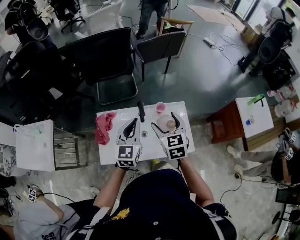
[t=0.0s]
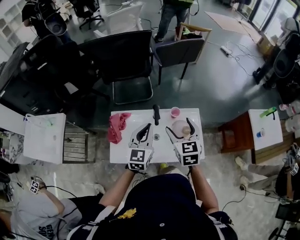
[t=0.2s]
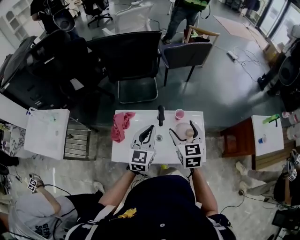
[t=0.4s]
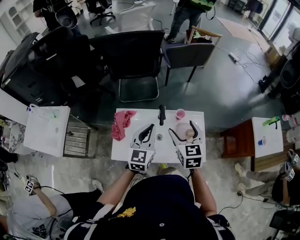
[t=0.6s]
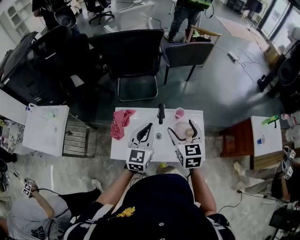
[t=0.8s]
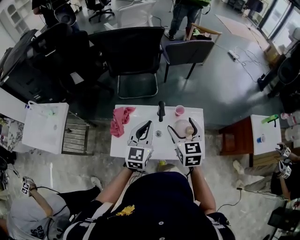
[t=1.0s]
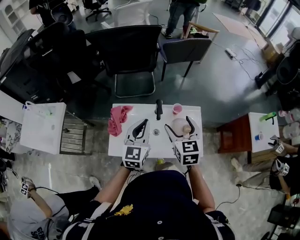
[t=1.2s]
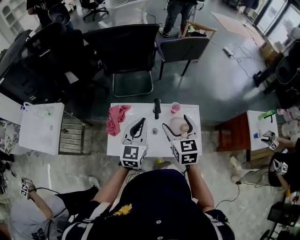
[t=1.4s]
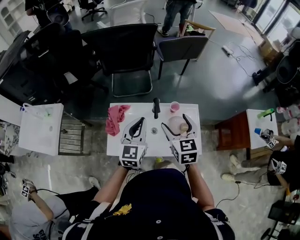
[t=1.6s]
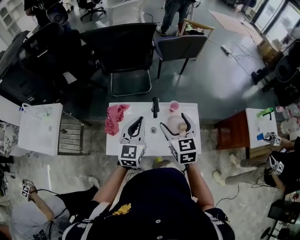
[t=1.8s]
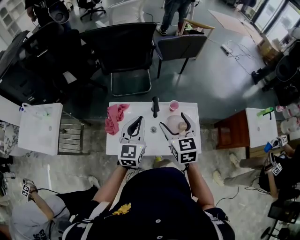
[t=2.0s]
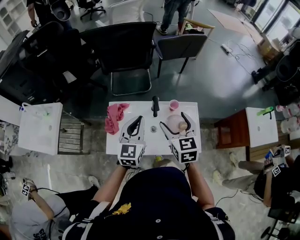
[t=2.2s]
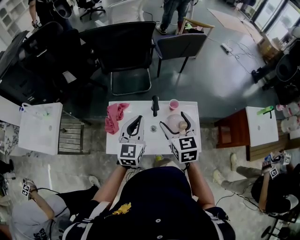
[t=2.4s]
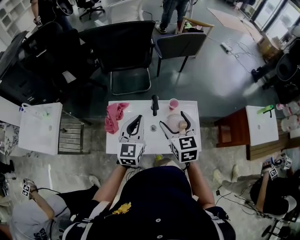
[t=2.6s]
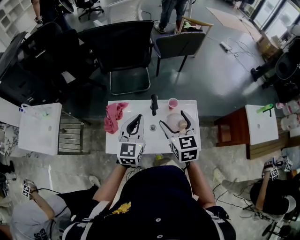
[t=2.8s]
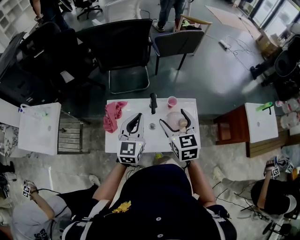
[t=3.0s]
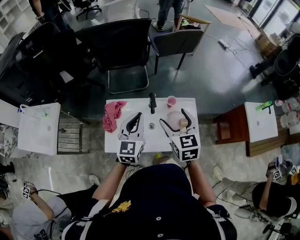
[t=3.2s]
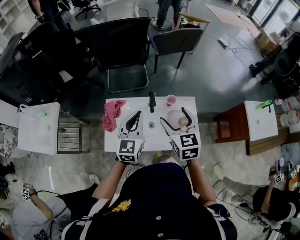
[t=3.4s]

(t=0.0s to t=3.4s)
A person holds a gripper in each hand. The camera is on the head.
t=0.0s - t=1.6s: The left gripper changes place by approximately 5 cm.
t=1.6s - t=3.4s: The grippers move only a little.

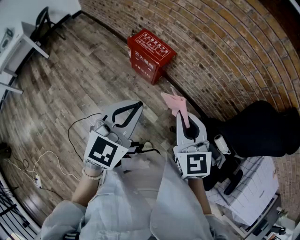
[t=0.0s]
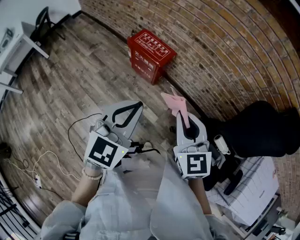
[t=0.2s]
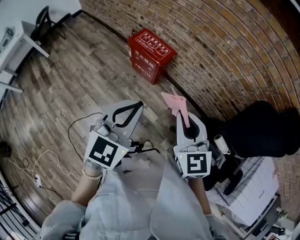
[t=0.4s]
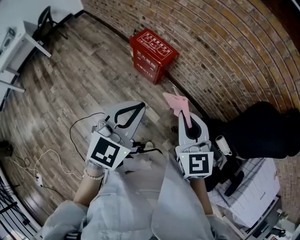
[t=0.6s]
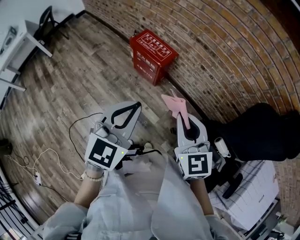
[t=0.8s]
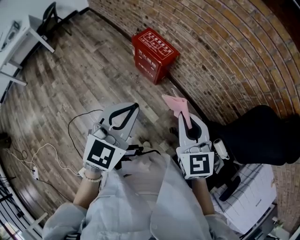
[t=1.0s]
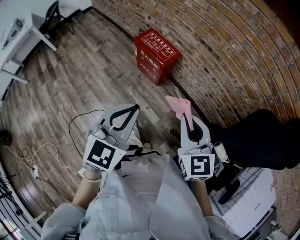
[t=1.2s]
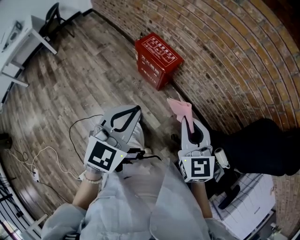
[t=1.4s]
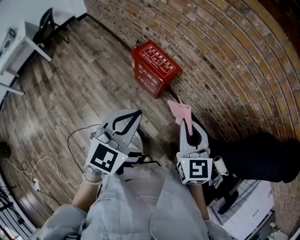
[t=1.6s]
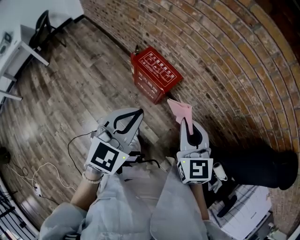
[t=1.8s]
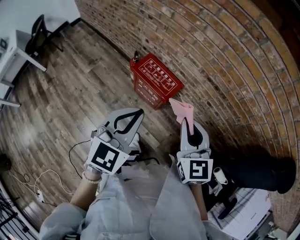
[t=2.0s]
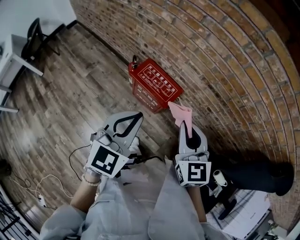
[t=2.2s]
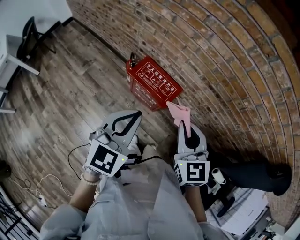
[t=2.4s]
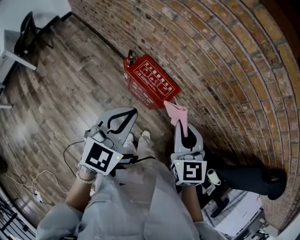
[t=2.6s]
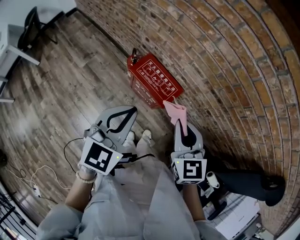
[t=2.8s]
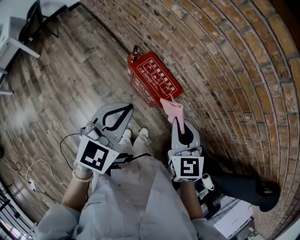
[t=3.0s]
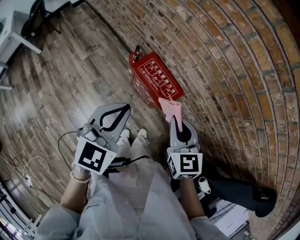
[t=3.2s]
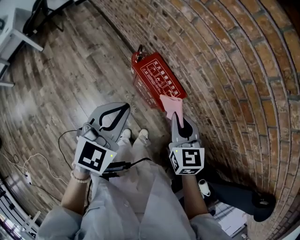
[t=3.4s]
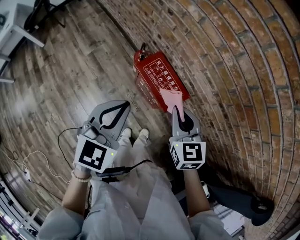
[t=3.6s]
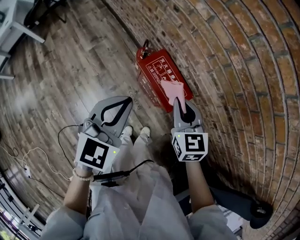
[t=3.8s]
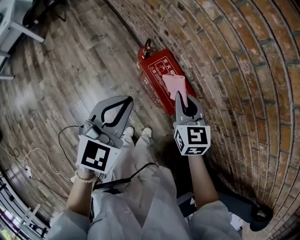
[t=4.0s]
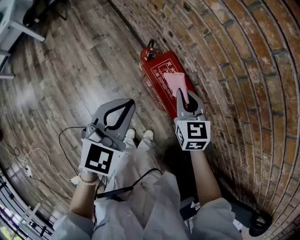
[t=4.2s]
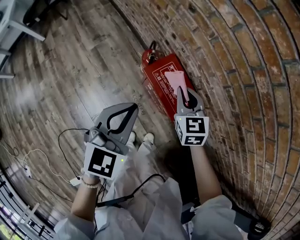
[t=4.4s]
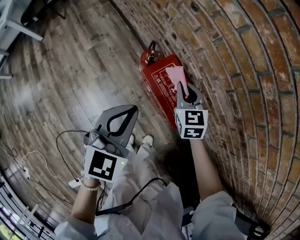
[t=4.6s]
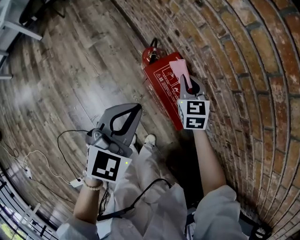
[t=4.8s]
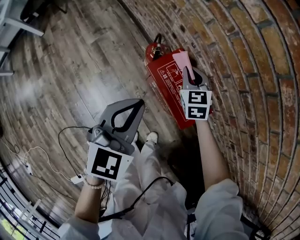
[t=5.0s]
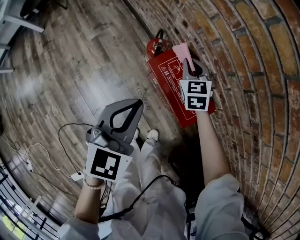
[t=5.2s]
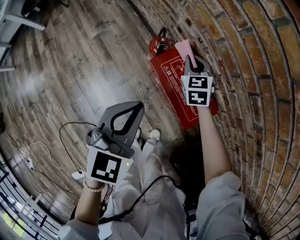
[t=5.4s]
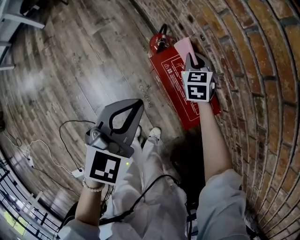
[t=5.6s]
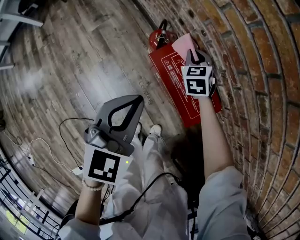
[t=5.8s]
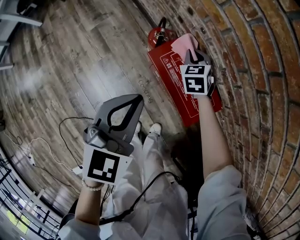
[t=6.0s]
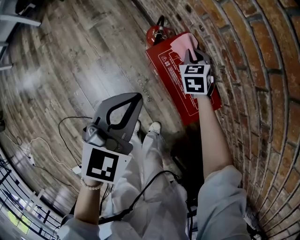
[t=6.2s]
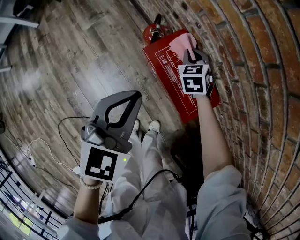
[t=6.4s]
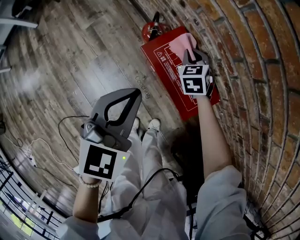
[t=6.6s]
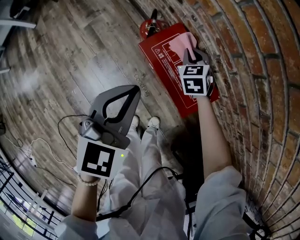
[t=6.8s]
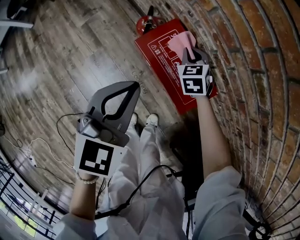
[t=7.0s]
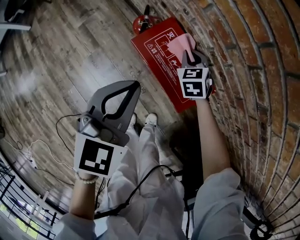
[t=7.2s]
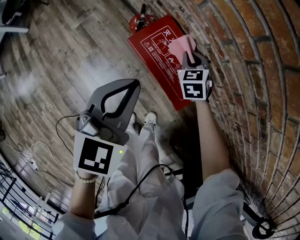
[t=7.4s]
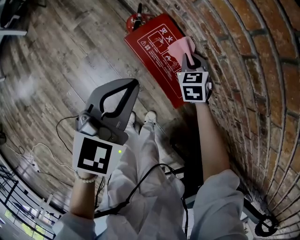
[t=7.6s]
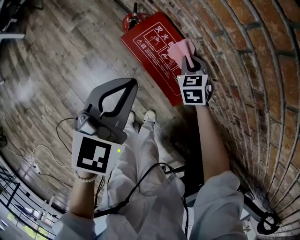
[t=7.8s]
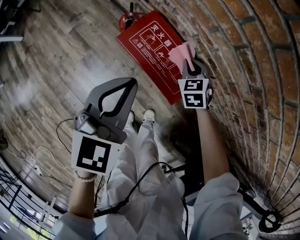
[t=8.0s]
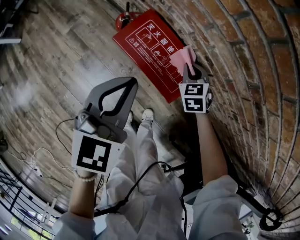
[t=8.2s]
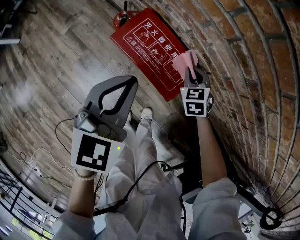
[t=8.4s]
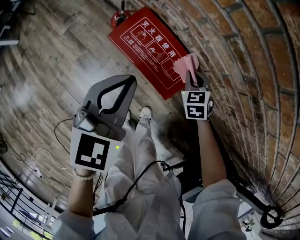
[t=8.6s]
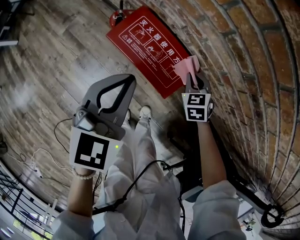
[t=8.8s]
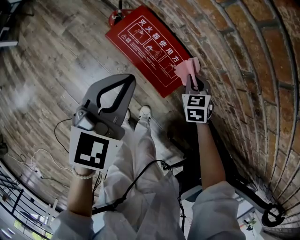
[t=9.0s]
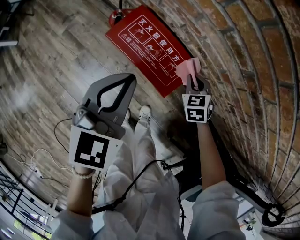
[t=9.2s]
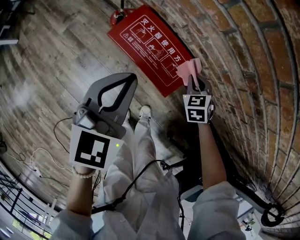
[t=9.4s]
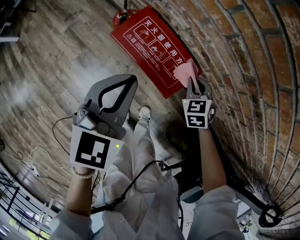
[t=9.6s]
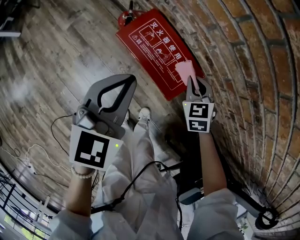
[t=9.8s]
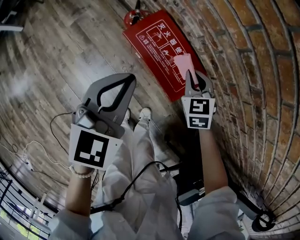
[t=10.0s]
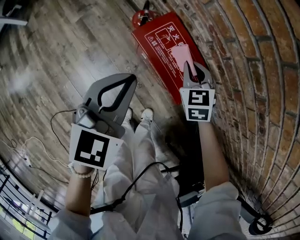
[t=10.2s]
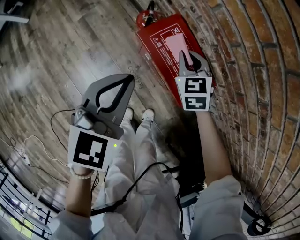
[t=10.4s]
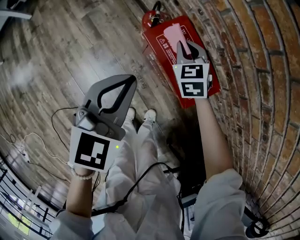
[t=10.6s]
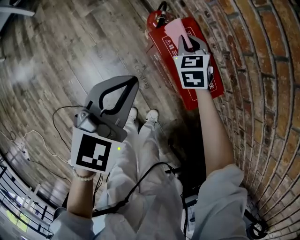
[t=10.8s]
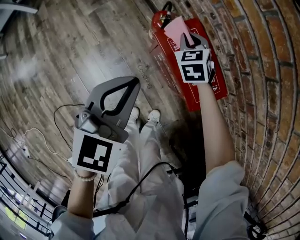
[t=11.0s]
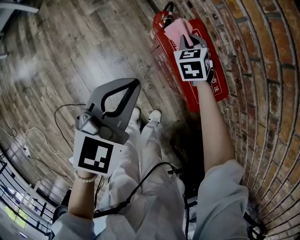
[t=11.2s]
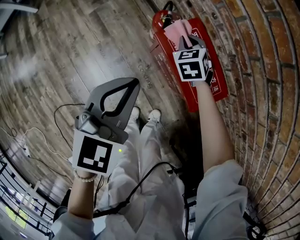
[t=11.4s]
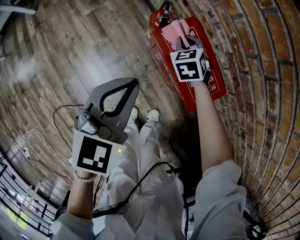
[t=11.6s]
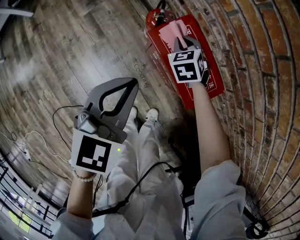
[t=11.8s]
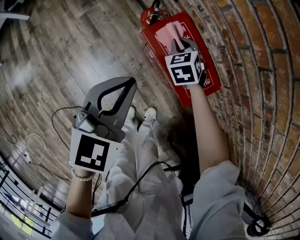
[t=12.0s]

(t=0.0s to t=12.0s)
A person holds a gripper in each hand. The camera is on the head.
t=0.0s - t=1.6s: Both grippers travel together forward, about 10 cm.
t=1.6s - t=3.0s: The two grippers go some 25 cm forward and to the left.
t=3.0s - t=4.4s: The right gripper goes approximately 30 cm forward and downward, while the left gripper is displaced downward and forward by about 15 cm.
t=4.4s - t=6.0s: The right gripper heads downward and forward, covering about 25 cm. Meanwhile the left gripper shifts about 10 cm downward.
t=6.0s - t=7.6s: The right gripper heads to the right and backward, covering some 10 cm. Meanwhile the left gripper goes roughly 5 cm to the right.
t=7.6s - t=9.0s: The left gripper travels to the right by approximately 5 cm. Meanwhile the right gripper moves to the right and backward, approximately 15 cm.
t=9.0s - t=10.4s: The left gripper goes approximately 10 cm to the left; the right gripper goes approximately 20 cm to the left, and rotates approximately 20 degrees.
t=10.4s - t=12.0s: The right gripper shifts roughly 5 cm downward.

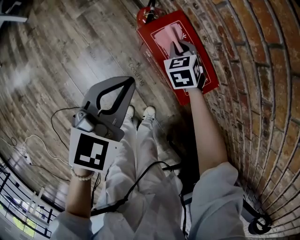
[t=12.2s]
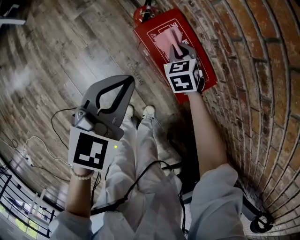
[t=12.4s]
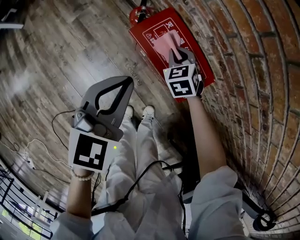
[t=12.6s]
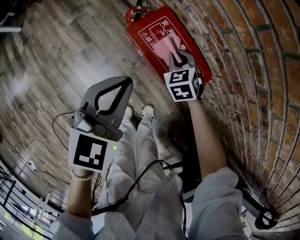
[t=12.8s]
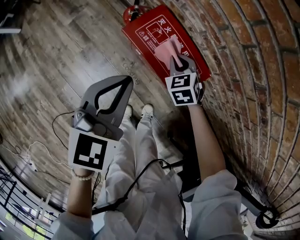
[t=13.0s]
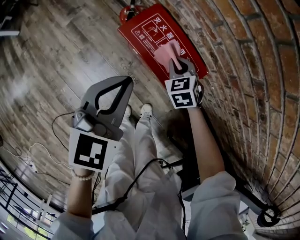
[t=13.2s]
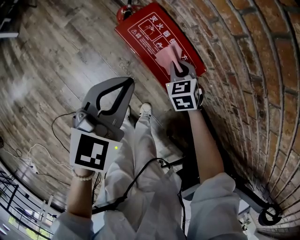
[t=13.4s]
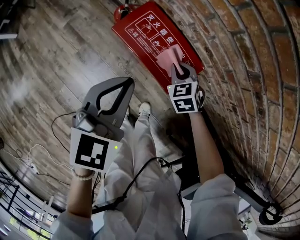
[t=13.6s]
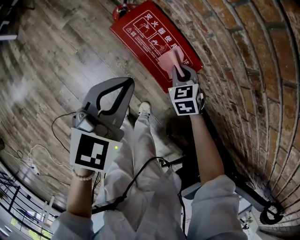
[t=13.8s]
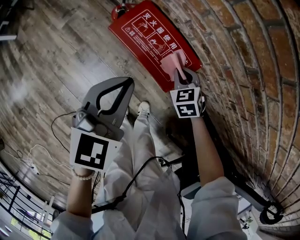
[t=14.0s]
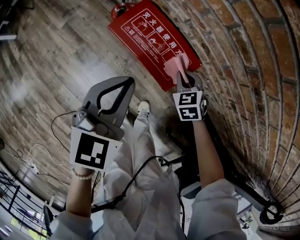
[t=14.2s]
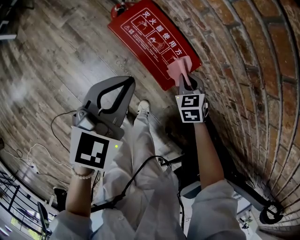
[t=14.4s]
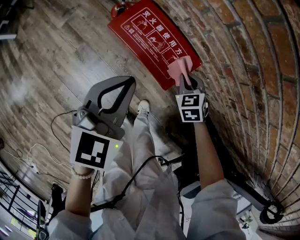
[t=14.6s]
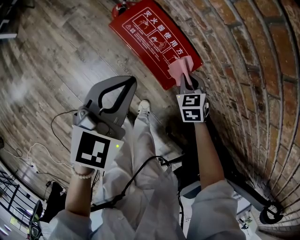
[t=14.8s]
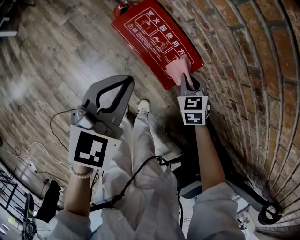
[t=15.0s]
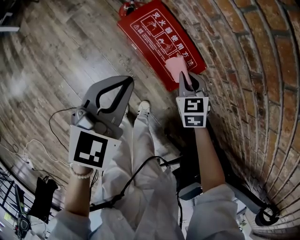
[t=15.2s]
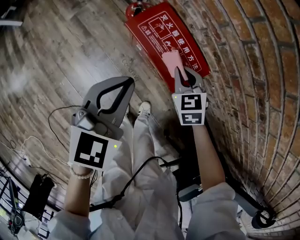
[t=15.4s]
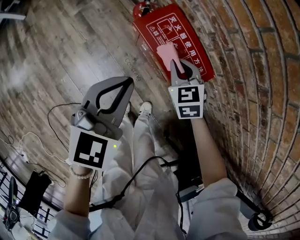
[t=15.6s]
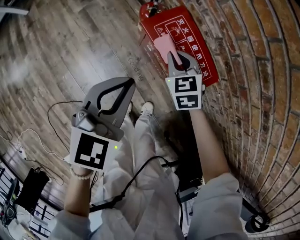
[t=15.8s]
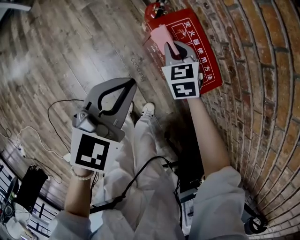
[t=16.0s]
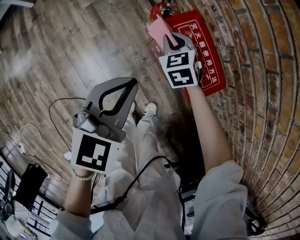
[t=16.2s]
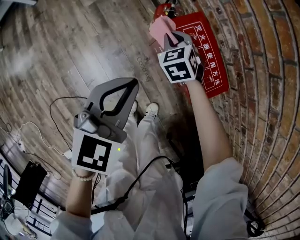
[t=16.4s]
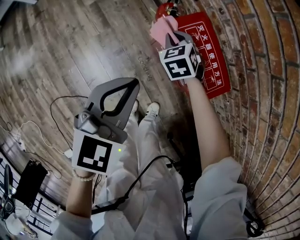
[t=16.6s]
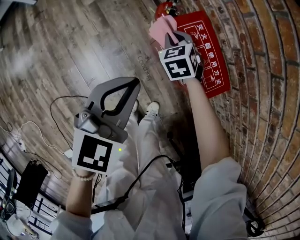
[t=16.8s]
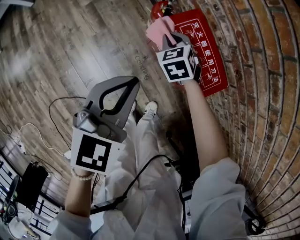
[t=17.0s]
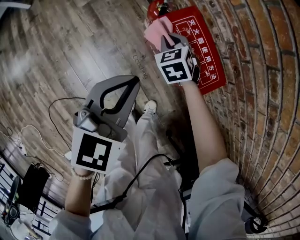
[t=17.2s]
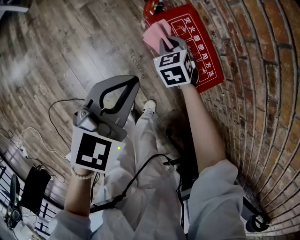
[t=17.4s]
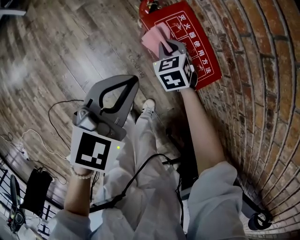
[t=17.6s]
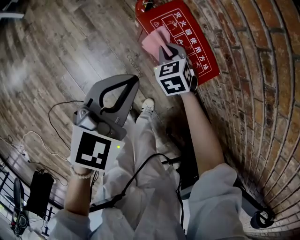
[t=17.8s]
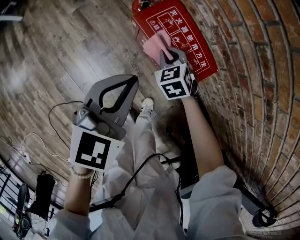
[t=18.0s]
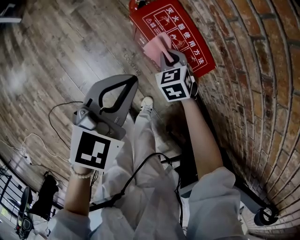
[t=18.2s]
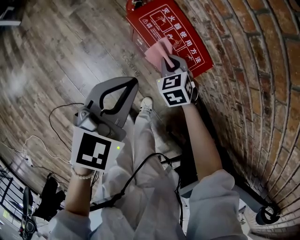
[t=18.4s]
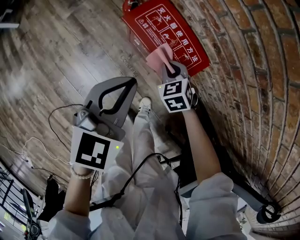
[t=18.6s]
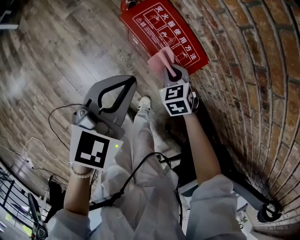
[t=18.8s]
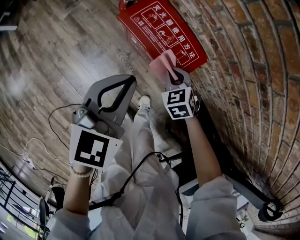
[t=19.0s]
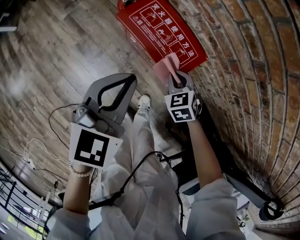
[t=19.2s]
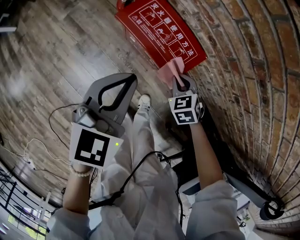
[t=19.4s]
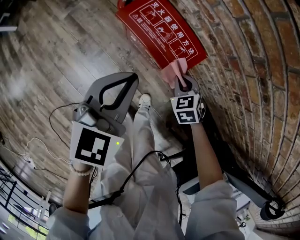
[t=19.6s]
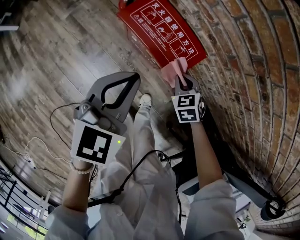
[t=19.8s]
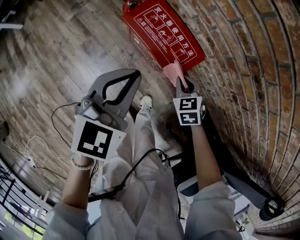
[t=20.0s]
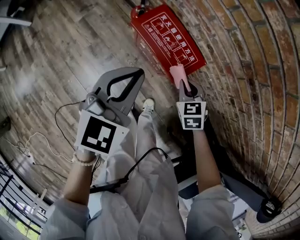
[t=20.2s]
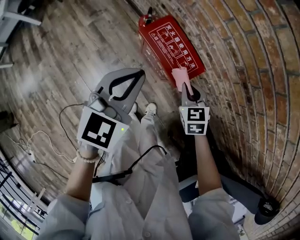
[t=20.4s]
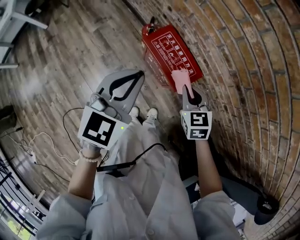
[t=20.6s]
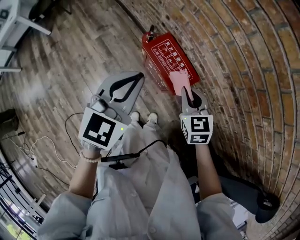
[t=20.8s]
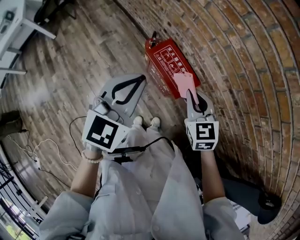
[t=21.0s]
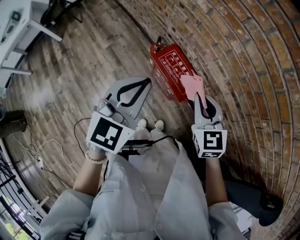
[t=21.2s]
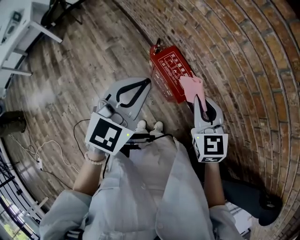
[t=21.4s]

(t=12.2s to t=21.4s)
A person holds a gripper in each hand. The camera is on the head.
t=12.2s - t=13.8s: The right gripper goes about 15 cm to the right and backward. The left gripper is displaced to the right by roughly 10 cm.
t=13.8s - t=15.2s: The grippers make only small movements.
t=15.2s - t=16.8s: The left gripper moves to the left, about 10 cm. The right gripper travels to the left and forward by some 25 cm.
t=16.8s - t=18.4s: The right gripper is displaced to the right and backward by about 15 cm, while the left gripper goes about 10 cm to the right.
t=18.4s - t=19.8s: The right gripper is displaced to the right and backward by roughly 15 cm.
t=19.8s - t=21.4s: The left gripper moves upward, some 30 cm, while the right gripper is displaced upward by some 40 cm, and tilts its fingers some 30 degrees upward.
